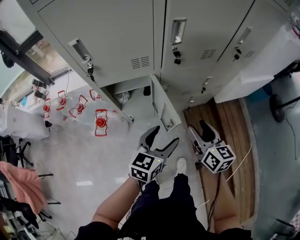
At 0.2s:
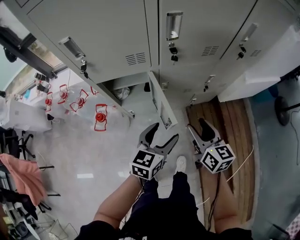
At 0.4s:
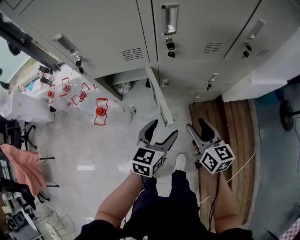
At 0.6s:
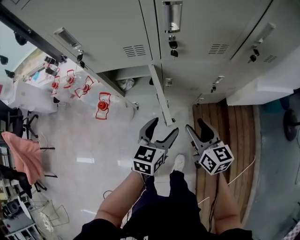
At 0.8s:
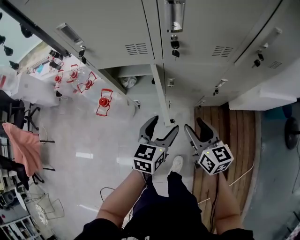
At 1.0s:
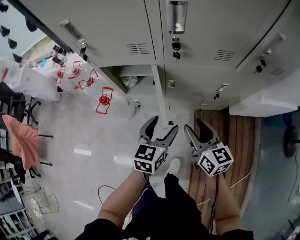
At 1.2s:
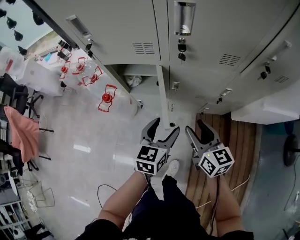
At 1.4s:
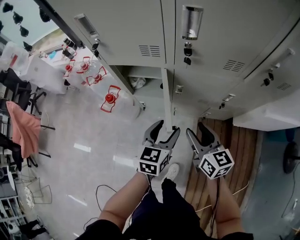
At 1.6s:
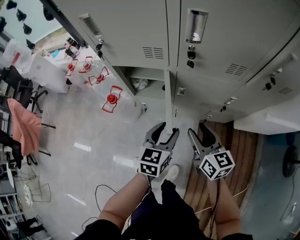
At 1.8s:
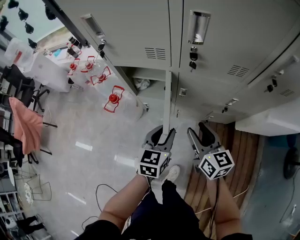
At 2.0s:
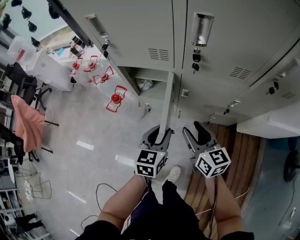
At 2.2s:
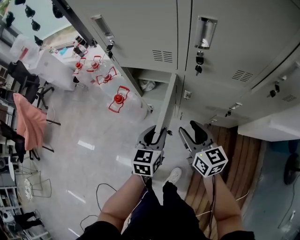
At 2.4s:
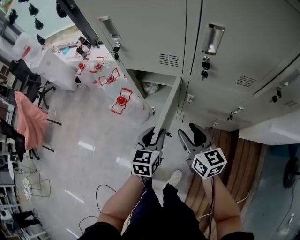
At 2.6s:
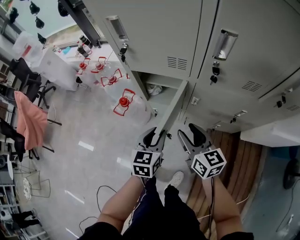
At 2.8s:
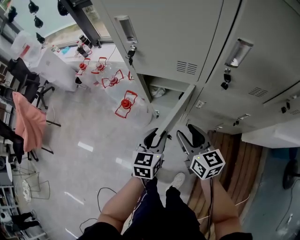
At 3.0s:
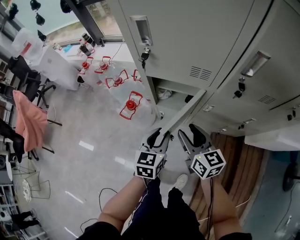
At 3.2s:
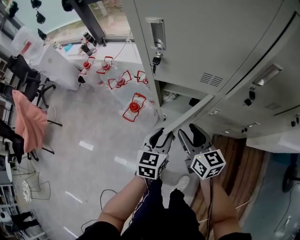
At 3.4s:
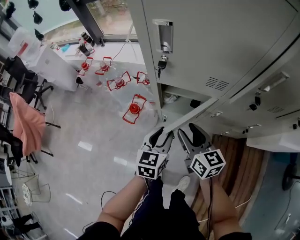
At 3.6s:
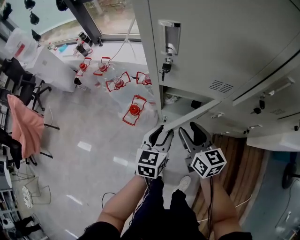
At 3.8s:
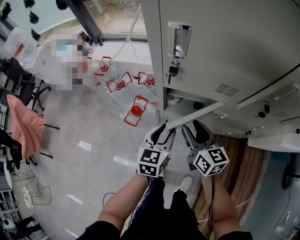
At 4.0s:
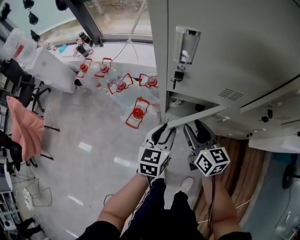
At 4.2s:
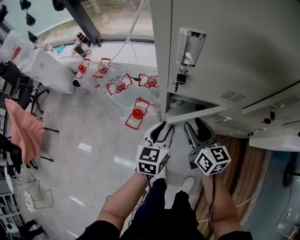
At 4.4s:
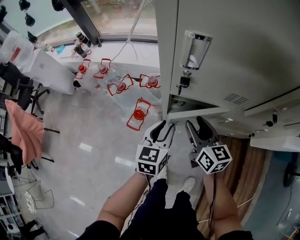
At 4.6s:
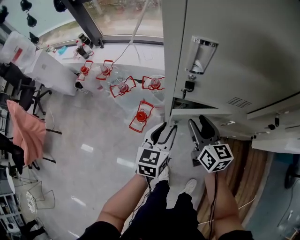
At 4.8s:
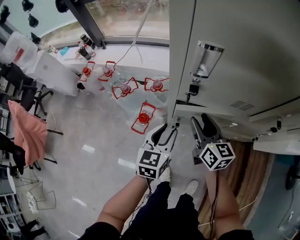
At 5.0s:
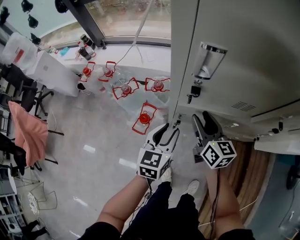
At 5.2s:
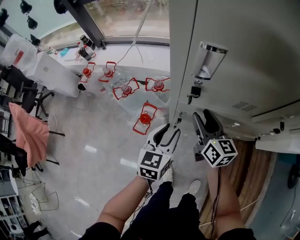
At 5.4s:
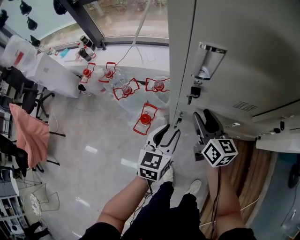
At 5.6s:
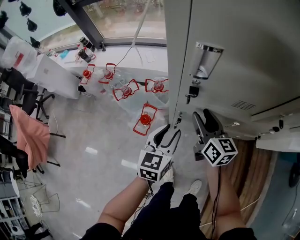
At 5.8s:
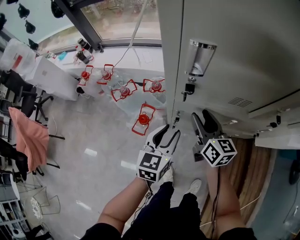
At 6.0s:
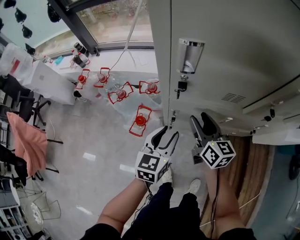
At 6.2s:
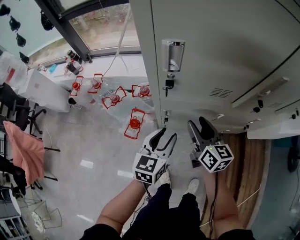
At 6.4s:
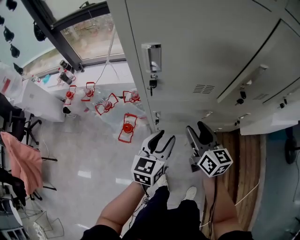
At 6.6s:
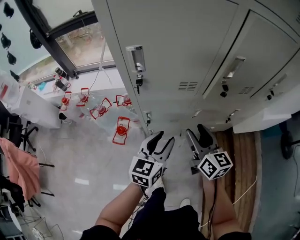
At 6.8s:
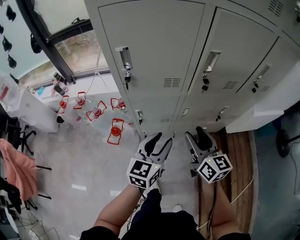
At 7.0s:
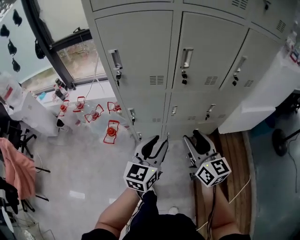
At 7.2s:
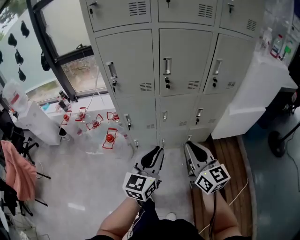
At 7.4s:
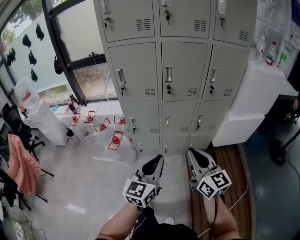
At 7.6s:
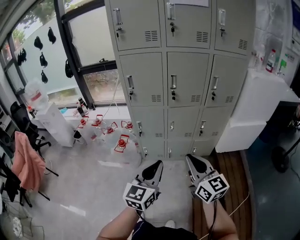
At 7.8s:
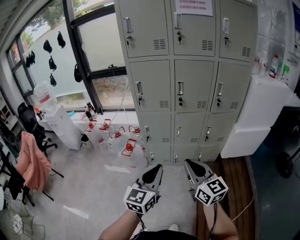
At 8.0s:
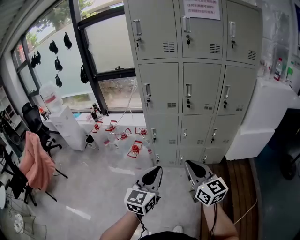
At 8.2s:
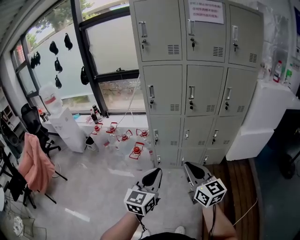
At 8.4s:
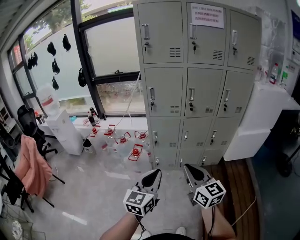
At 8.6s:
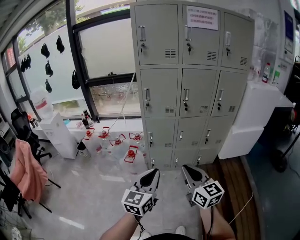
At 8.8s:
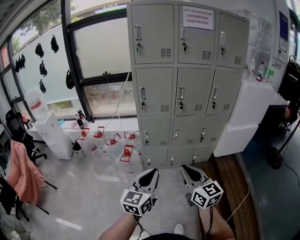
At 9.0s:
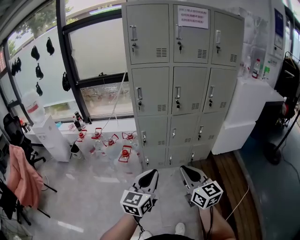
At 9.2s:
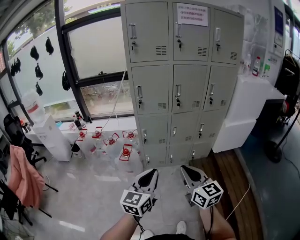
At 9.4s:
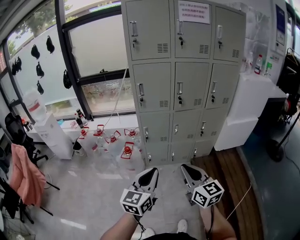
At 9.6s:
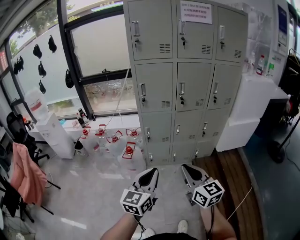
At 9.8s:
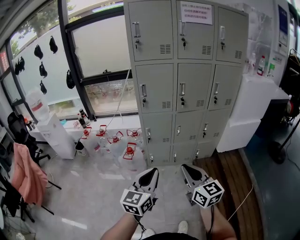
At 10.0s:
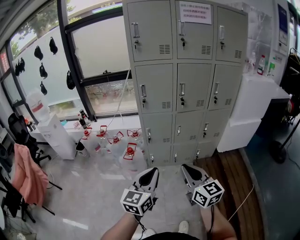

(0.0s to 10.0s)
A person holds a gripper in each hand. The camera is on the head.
0.0s - 1.4s: The right gripper moves approximately 10 cm, and changes its angle by about 30 degrees. Meanwhile the left gripper changes place by about 10 cm, and turns by approximately 30 degrees.
1.4s - 2.8s: The left gripper moves to the left, some 15 cm, and closes up. Meanwhile the right gripper heads to the left and forward, covering about 15 cm.
2.8s - 4.2s: Both grippers move forward and to the left, about 15 cm.
4.2s - 5.8s: The right gripper is displaced forward by about 5 cm.
5.8s - 7.2s: The grippers both shift backward, to the right and upward by roughly 50 cm. The left gripper rotates some 20 degrees. The right gripper turns by approximately 20 degrees, and closes up.
7.2s - 8.6s: The right gripper moves backward and to the left, some 25 cm. The left gripper goes about 25 cm backward, to the left and upward.
8.6s - 10.0s: The grippers make only small movements.

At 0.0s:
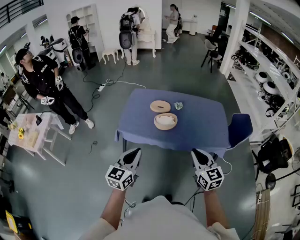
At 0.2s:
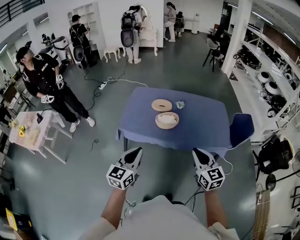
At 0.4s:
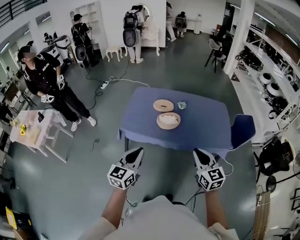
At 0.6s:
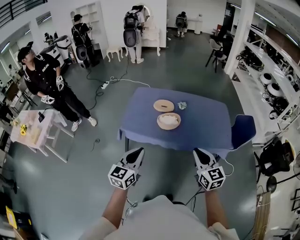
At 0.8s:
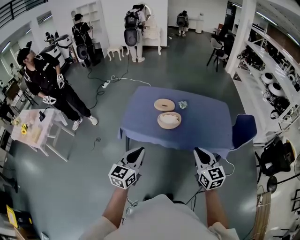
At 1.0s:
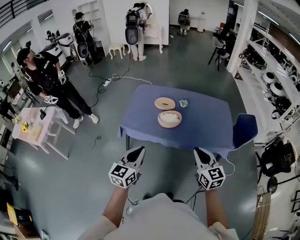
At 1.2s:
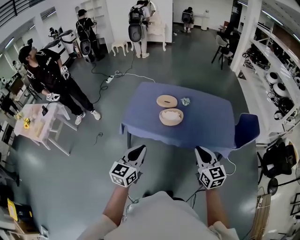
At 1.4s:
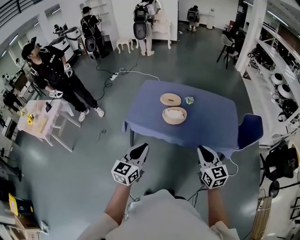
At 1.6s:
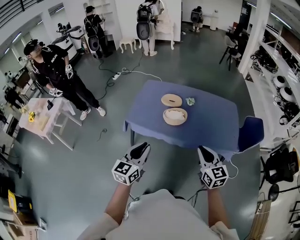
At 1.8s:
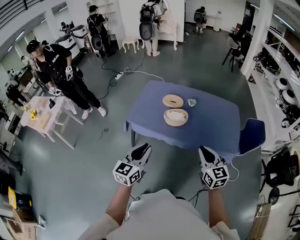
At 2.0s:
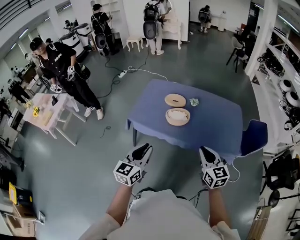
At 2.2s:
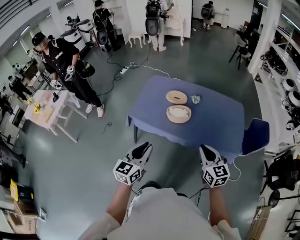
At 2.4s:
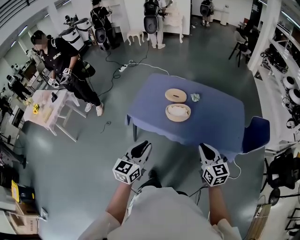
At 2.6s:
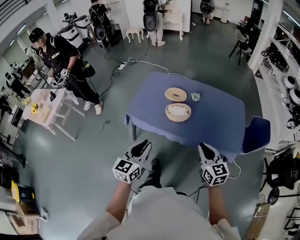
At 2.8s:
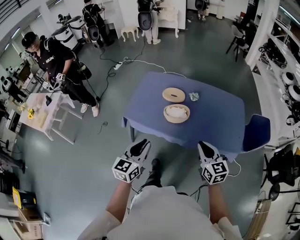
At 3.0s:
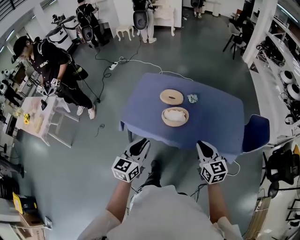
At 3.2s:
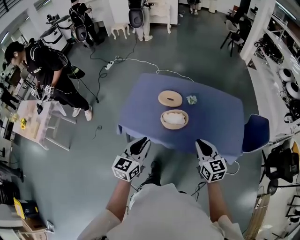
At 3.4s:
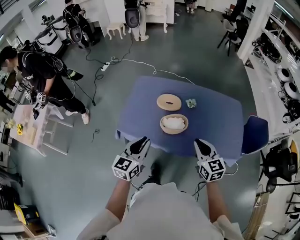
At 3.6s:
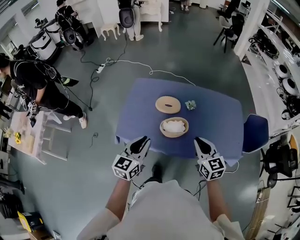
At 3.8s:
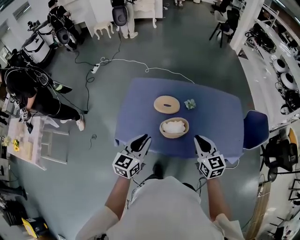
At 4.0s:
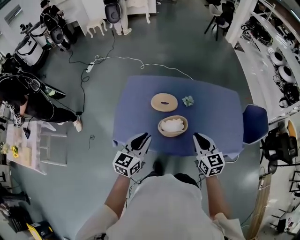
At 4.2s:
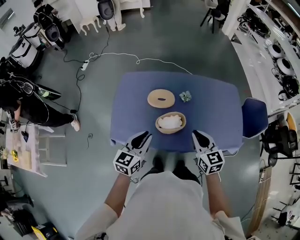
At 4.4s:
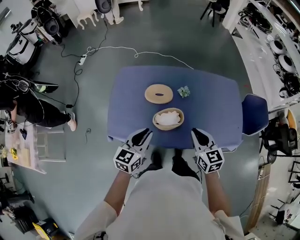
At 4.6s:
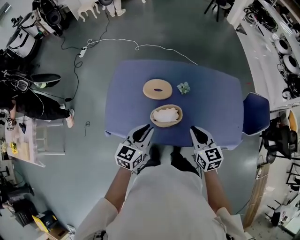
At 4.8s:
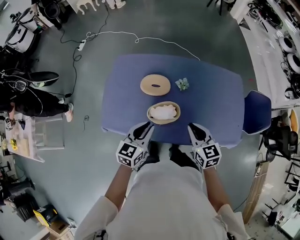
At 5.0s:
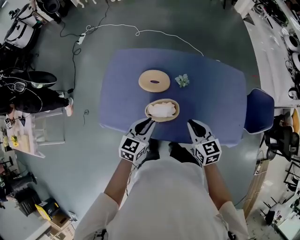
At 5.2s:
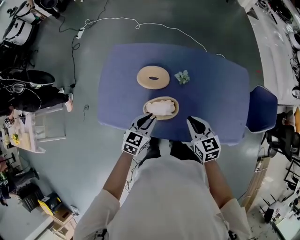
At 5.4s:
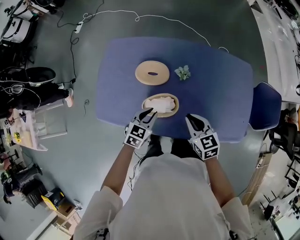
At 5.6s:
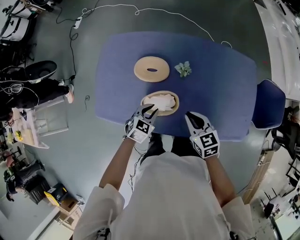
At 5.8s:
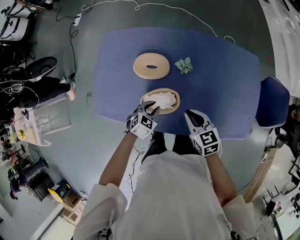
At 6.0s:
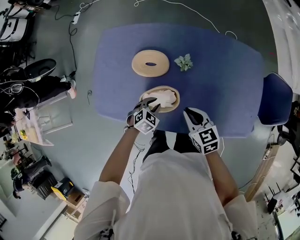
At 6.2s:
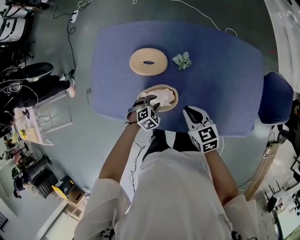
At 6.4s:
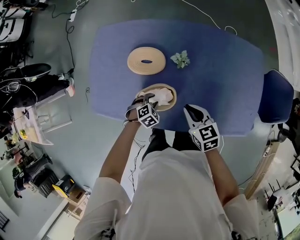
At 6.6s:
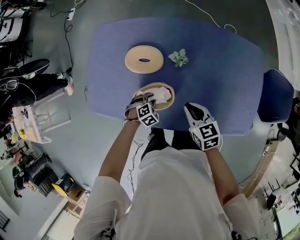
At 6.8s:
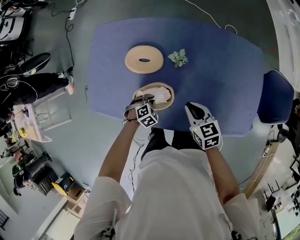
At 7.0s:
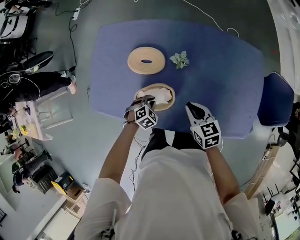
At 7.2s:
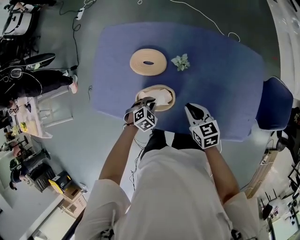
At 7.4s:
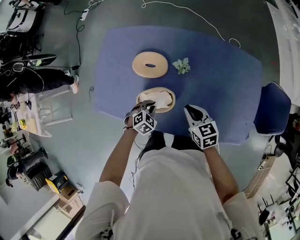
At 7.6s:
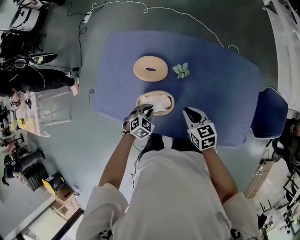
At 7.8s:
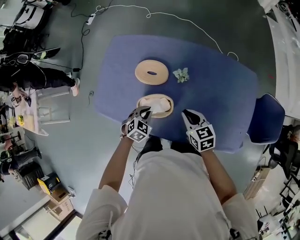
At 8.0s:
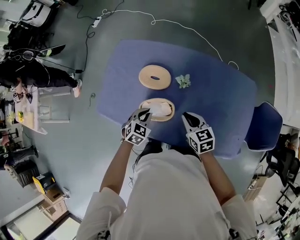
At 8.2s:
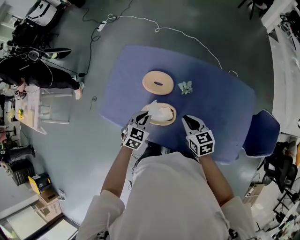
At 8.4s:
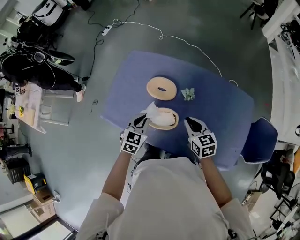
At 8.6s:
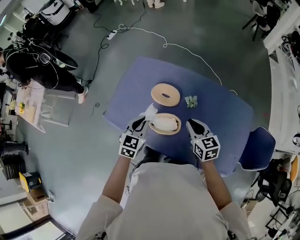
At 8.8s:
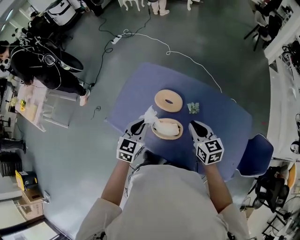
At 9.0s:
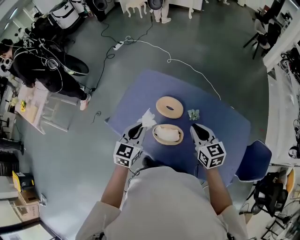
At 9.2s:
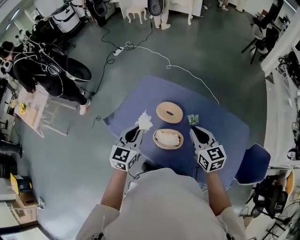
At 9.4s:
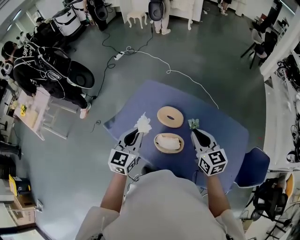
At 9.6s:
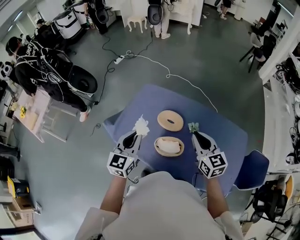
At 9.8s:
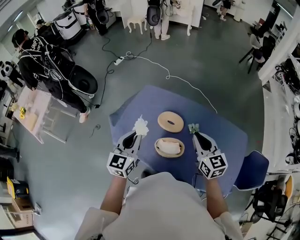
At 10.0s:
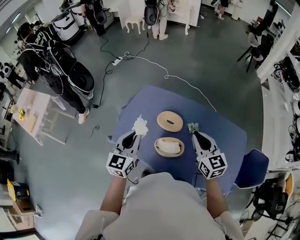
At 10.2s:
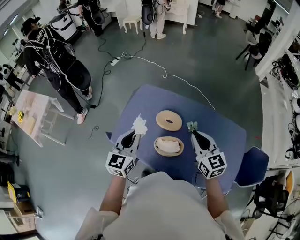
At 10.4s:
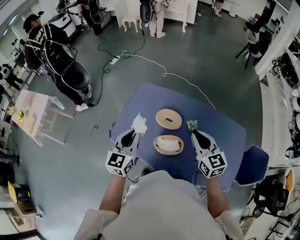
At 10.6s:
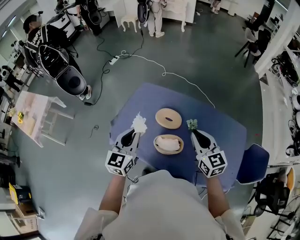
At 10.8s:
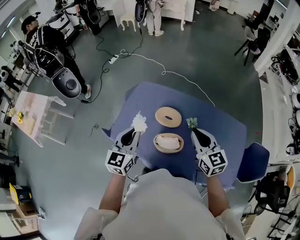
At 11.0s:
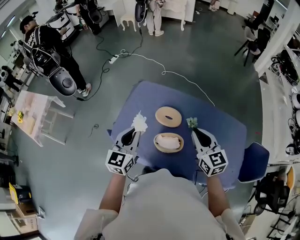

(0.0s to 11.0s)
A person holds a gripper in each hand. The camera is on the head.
0.0s - 1.6s: The right gripper moves some 5 cm.
1.6s - 3.2s: The grippers both shift forward by roughly 20 cm.
3.2s - 4.8s: Both grippers move forward and downward, approximately 20 cm.
4.8s - 6.2s: The right gripper shifts roughly 15 cm downward and forward, while the left gripper is displaced downward by approximately 30 cm, and points its fingers some 50 degrees further downward.
6.2s - 7.8s: The left gripper is displaced upward by approximately 10 cm, changes its angle by about 20 degrees, and closes its fingers.
7.8s - 9.4s: The right gripper heads upward, covering about 25 cm, and swivels approximately 20 degrees. The left gripper is displaced upward and to the left by approximately 35 cm, and angles its fingers upward, by some 40 degrees.
9.4s - 11.0s: There are only small adjustments of the grippers.

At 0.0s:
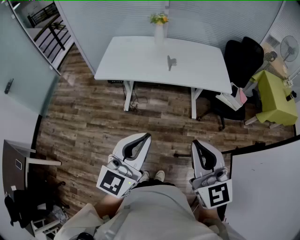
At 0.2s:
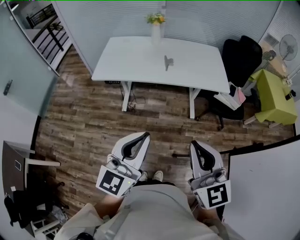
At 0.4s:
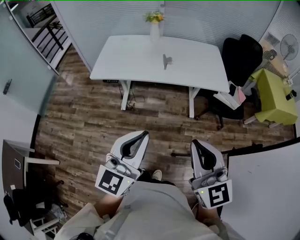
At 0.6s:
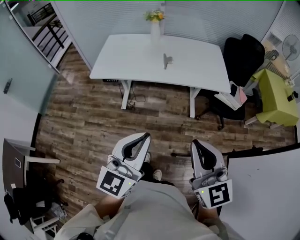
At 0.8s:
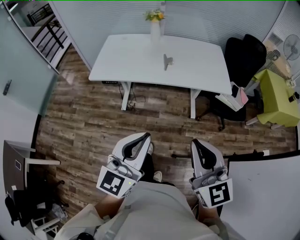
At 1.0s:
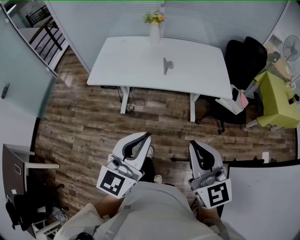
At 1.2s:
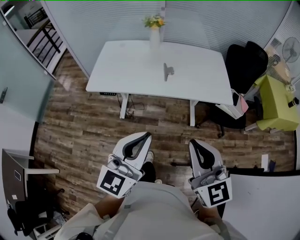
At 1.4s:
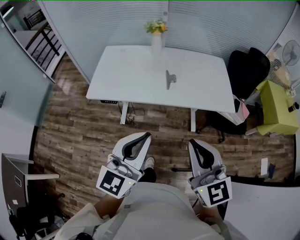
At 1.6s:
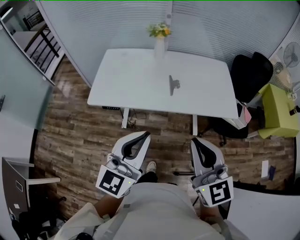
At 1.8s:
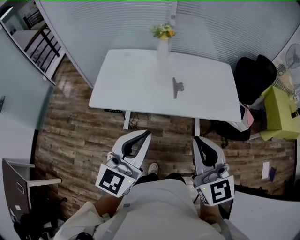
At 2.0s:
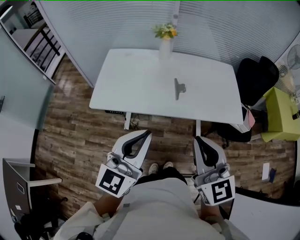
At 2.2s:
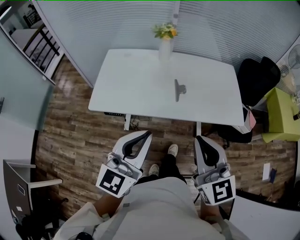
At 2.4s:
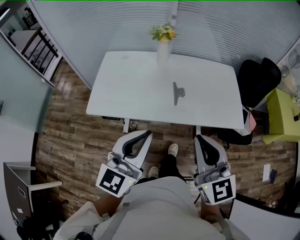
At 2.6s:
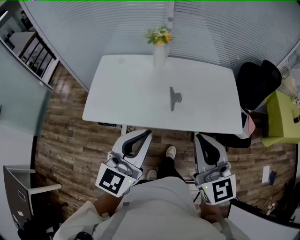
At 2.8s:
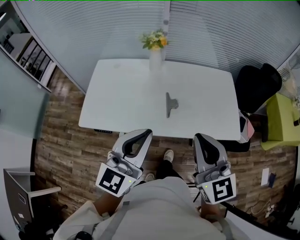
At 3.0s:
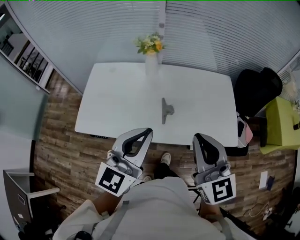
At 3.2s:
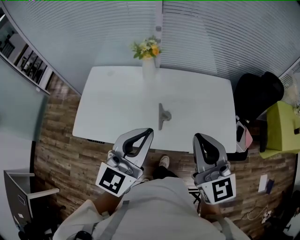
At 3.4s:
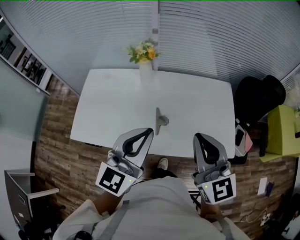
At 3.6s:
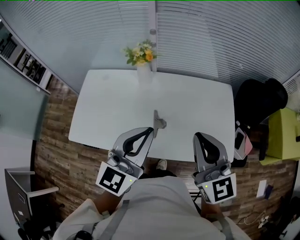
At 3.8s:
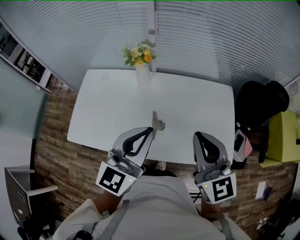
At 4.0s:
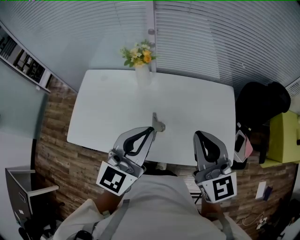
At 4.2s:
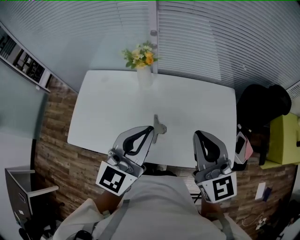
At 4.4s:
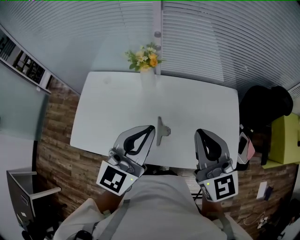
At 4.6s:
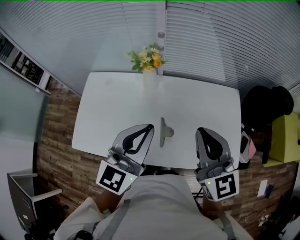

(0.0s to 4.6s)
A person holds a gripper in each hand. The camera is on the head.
0.0s - 1.6s: The two grippers go roughly 25 cm forward.
1.6s - 3.0s: Both grippers move forward, about 25 cm.
3.0s - 4.6s: The two grippers go about 20 cm forward.
